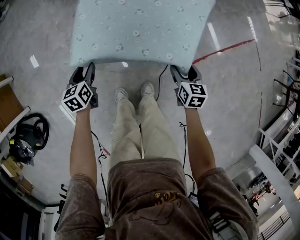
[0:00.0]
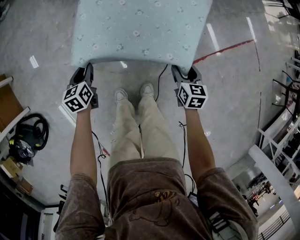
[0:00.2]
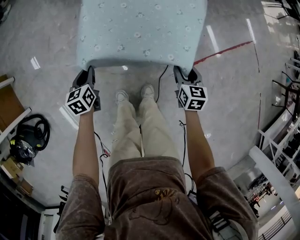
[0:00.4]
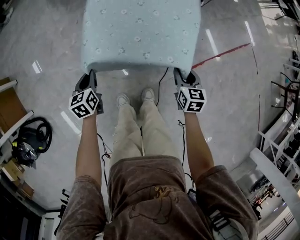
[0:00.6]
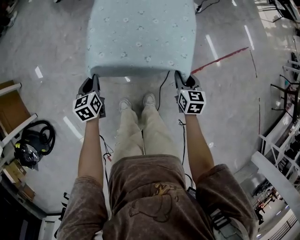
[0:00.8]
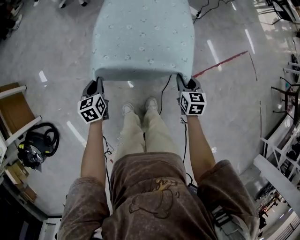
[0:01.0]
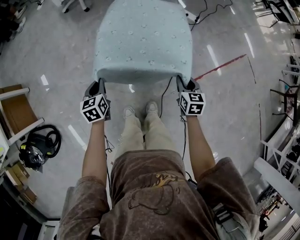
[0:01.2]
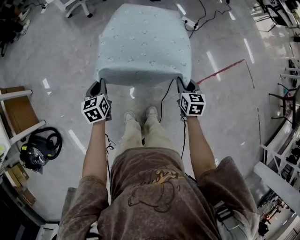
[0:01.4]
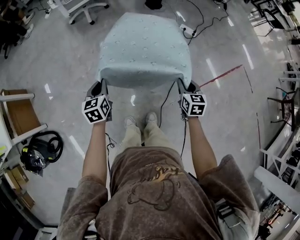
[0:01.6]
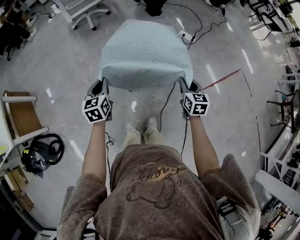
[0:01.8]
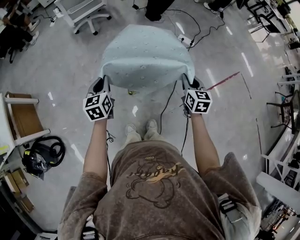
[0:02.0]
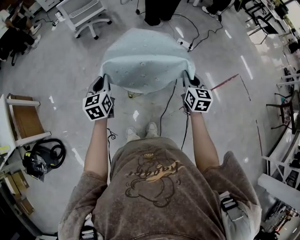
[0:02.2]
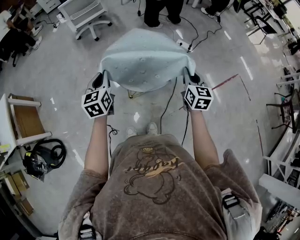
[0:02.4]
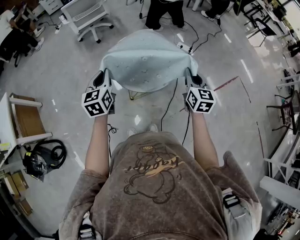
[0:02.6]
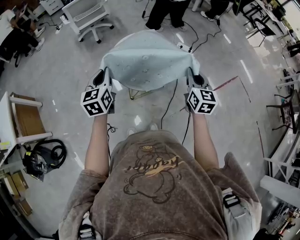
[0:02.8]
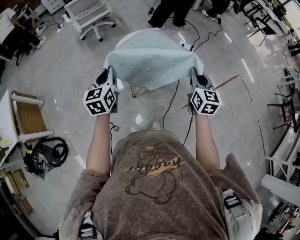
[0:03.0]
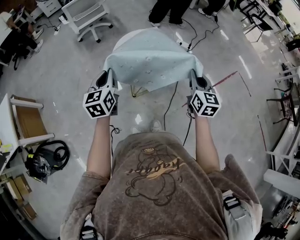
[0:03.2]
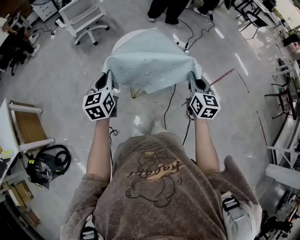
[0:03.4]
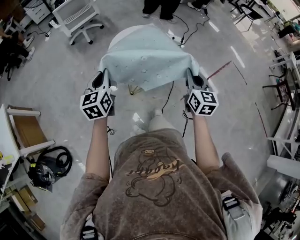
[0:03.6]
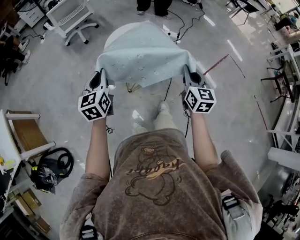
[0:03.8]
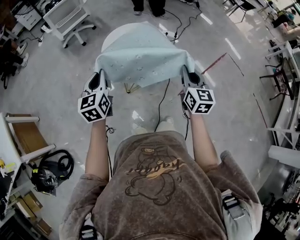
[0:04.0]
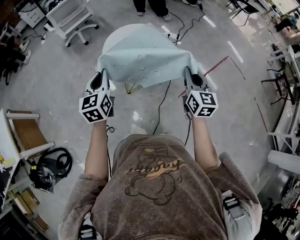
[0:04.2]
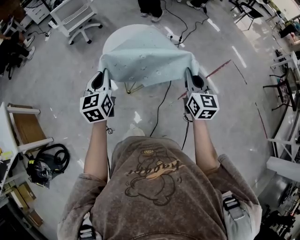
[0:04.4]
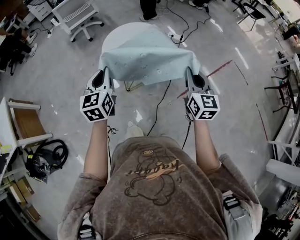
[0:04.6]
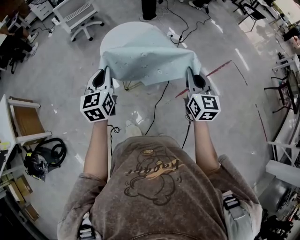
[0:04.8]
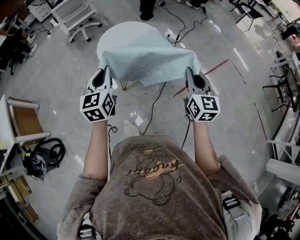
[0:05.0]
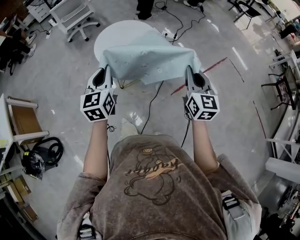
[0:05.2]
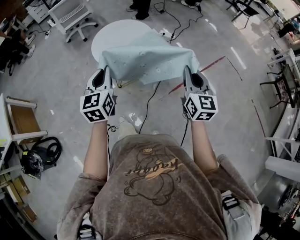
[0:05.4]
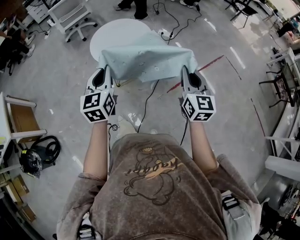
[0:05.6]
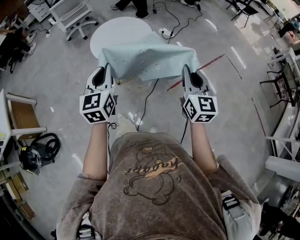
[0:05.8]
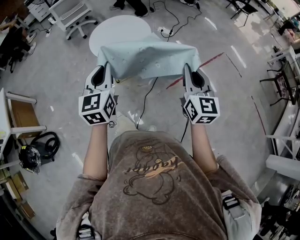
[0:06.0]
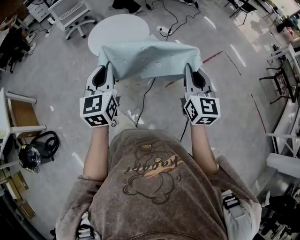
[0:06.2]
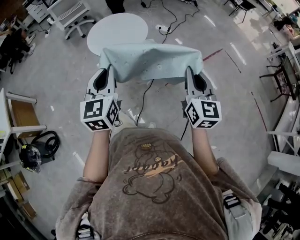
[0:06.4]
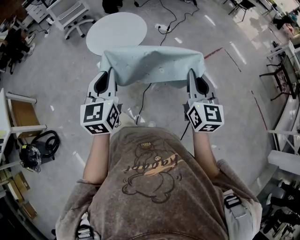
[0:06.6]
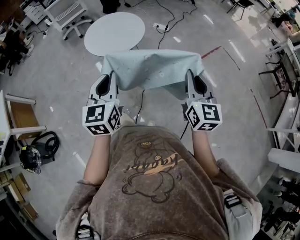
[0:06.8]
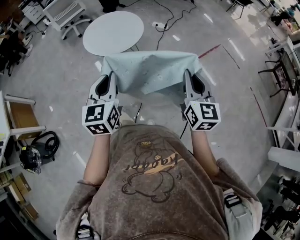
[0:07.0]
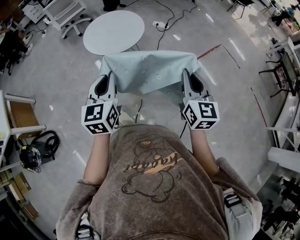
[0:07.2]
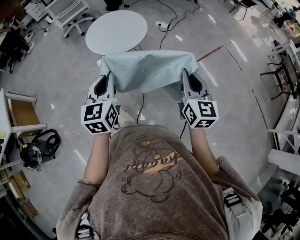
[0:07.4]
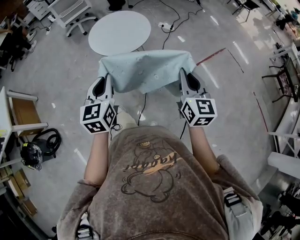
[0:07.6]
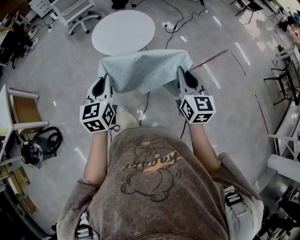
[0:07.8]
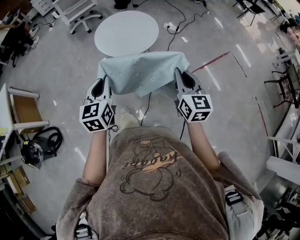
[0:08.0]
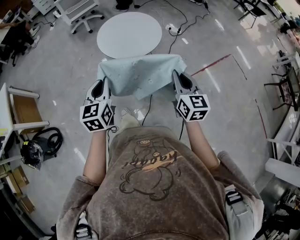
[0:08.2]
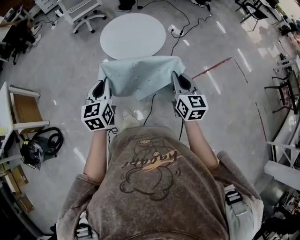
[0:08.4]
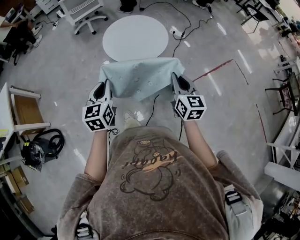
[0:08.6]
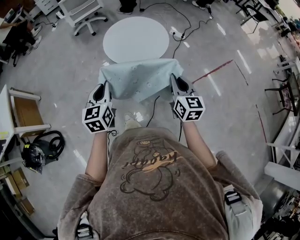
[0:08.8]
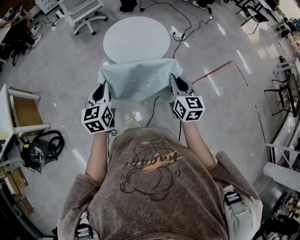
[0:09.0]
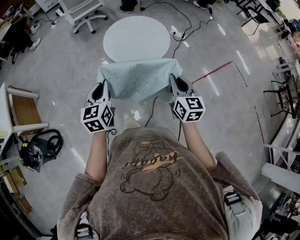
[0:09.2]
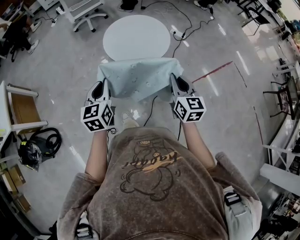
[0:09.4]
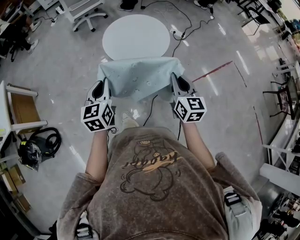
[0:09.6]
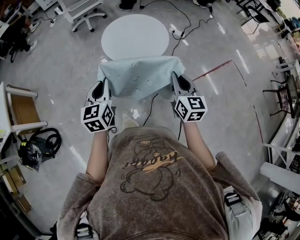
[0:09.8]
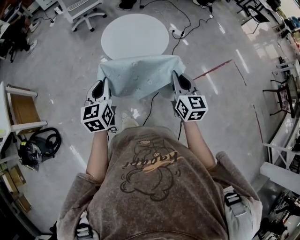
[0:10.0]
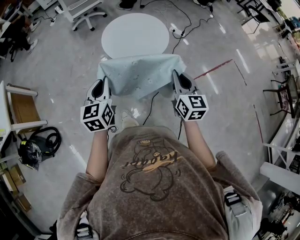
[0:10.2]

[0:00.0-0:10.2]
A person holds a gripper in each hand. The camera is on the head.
0.0 to 1.4 s: The two grippers go some 15 cm upward. The left gripper closes up; the right gripper closes.
1.4 to 3.0 s: The two grippers go about 25 cm upward. The right gripper swivels about 30 degrees; the left gripper swivels approximately 20 degrees.
3.0 to 4.4 s: The right gripper is displaced backward by about 10 cm, while the left gripper travels backward by roughly 5 cm.
4.4 to 5.8 s: The left gripper heads to the right and backward, covering roughly 20 cm. The right gripper is displaced backward and to the right by some 20 cm.
5.8 to 7.2 s: The right gripper heads backward, covering roughly 10 cm, while the left gripper goes approximately 10 cm backward and to the right.
7.2 to 8.8 s: The right gripper moves forward, to the left and downward, approximately 25 cm. The left gripper moves to the left and forward, roughly 20 cm.
8.8 to 10.2 s: The grippers make only small movements.

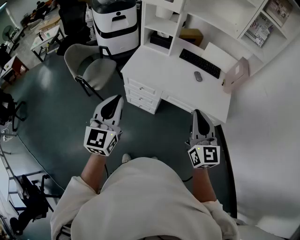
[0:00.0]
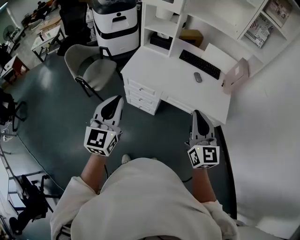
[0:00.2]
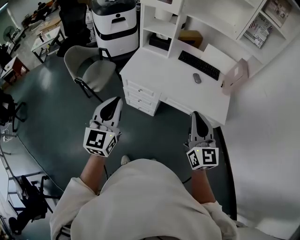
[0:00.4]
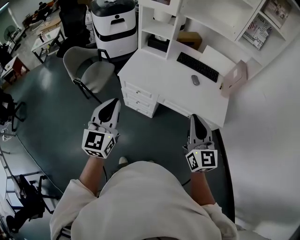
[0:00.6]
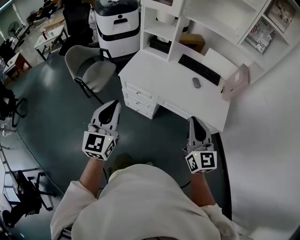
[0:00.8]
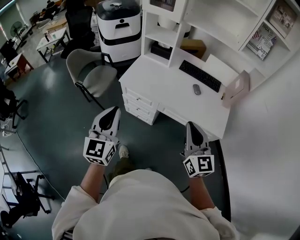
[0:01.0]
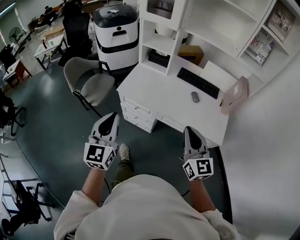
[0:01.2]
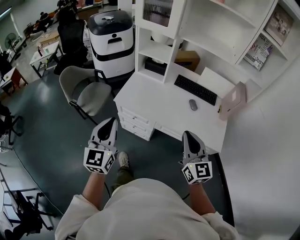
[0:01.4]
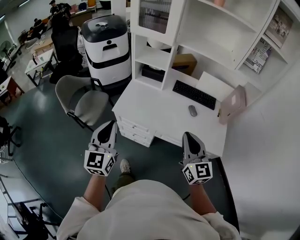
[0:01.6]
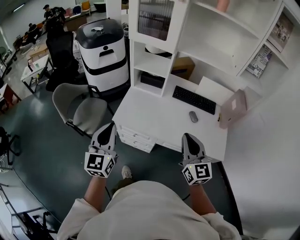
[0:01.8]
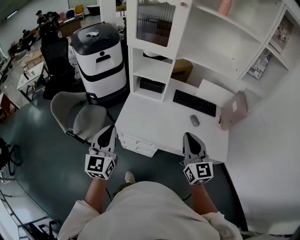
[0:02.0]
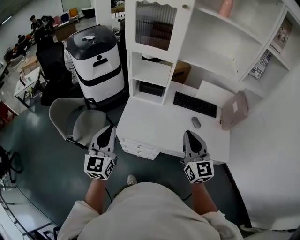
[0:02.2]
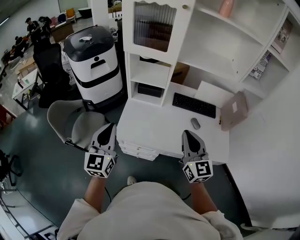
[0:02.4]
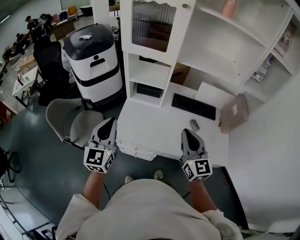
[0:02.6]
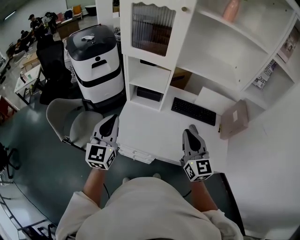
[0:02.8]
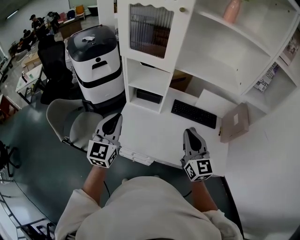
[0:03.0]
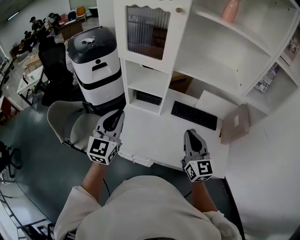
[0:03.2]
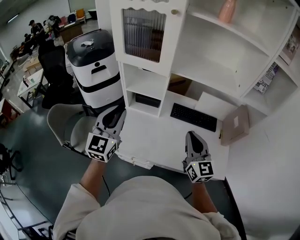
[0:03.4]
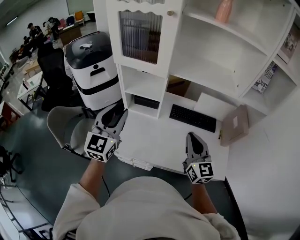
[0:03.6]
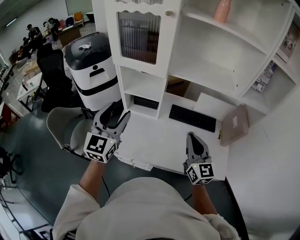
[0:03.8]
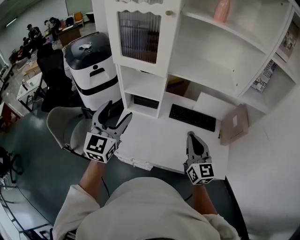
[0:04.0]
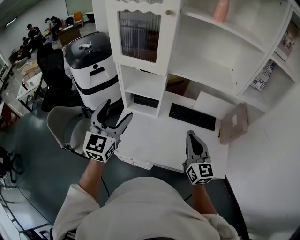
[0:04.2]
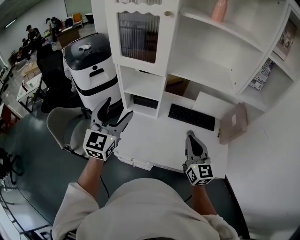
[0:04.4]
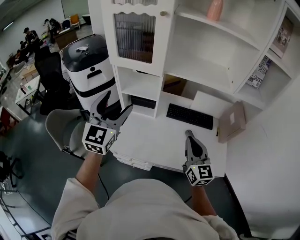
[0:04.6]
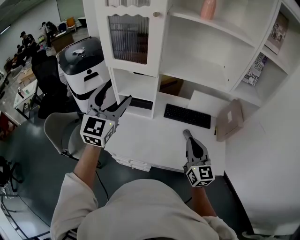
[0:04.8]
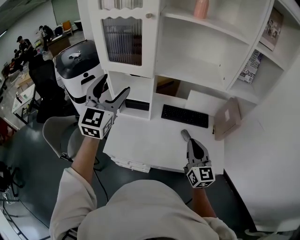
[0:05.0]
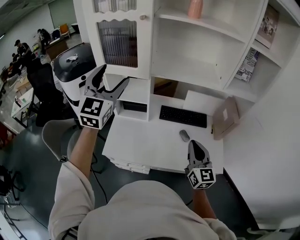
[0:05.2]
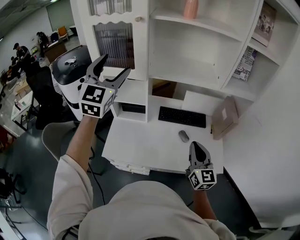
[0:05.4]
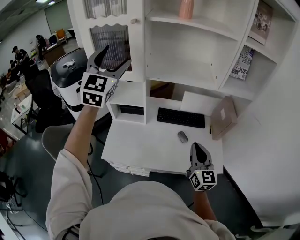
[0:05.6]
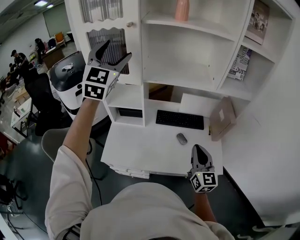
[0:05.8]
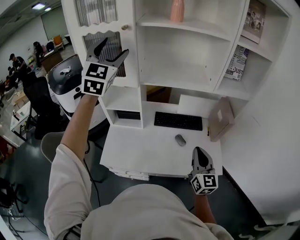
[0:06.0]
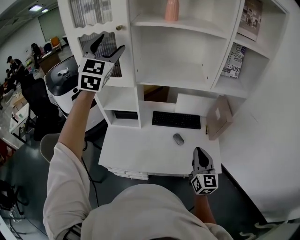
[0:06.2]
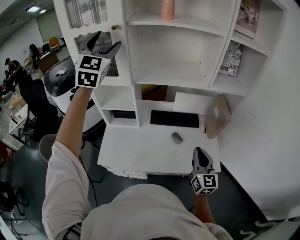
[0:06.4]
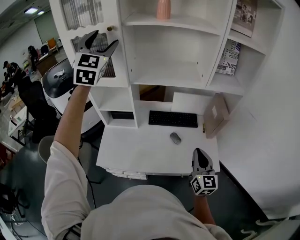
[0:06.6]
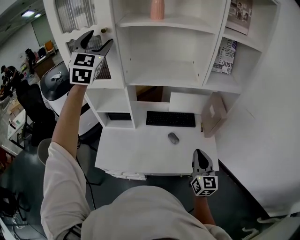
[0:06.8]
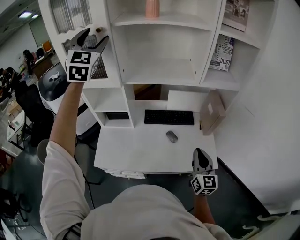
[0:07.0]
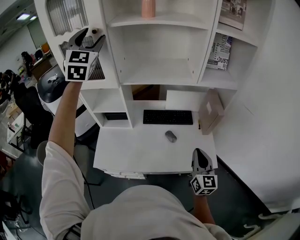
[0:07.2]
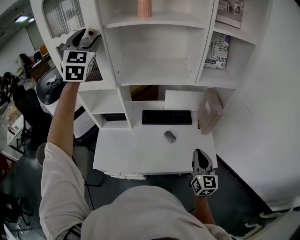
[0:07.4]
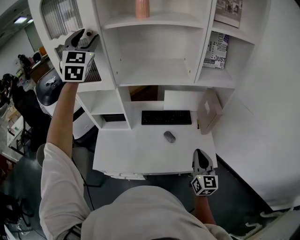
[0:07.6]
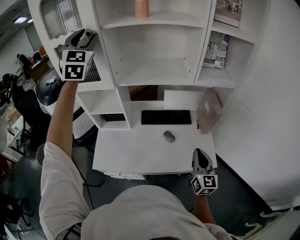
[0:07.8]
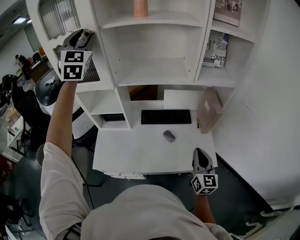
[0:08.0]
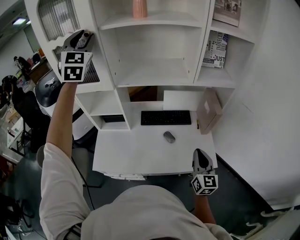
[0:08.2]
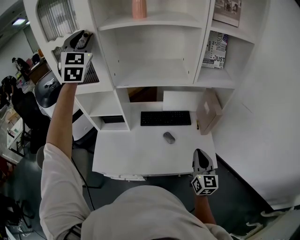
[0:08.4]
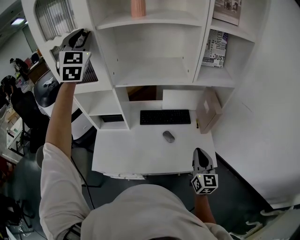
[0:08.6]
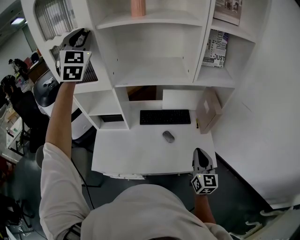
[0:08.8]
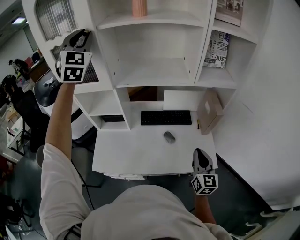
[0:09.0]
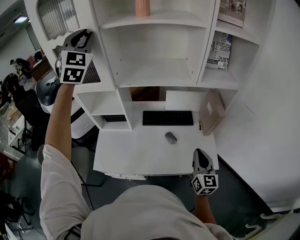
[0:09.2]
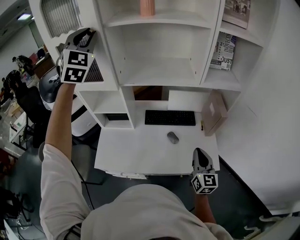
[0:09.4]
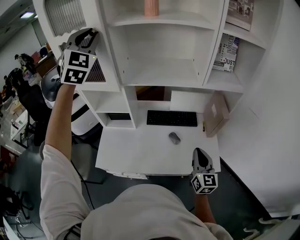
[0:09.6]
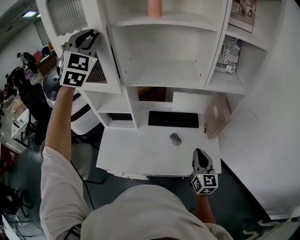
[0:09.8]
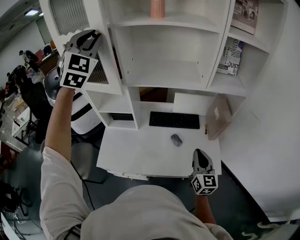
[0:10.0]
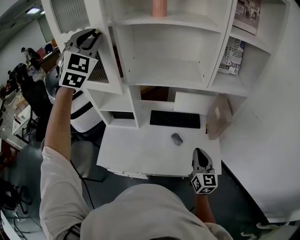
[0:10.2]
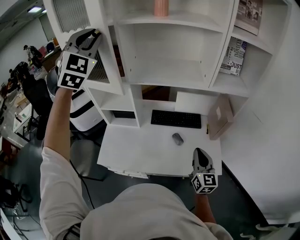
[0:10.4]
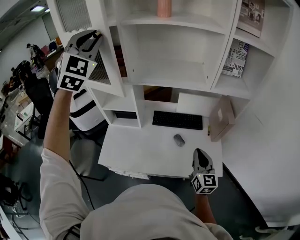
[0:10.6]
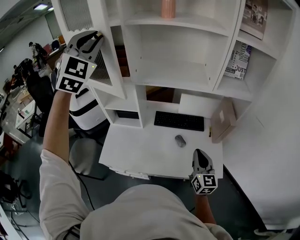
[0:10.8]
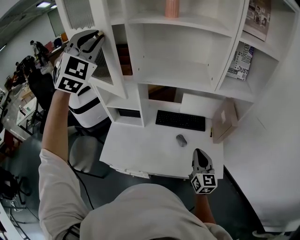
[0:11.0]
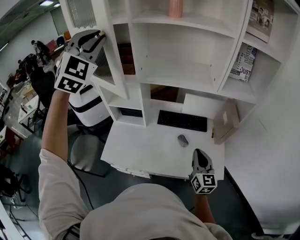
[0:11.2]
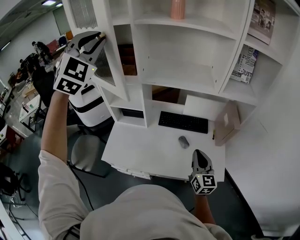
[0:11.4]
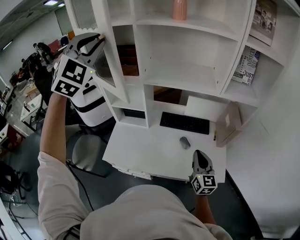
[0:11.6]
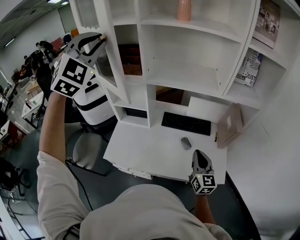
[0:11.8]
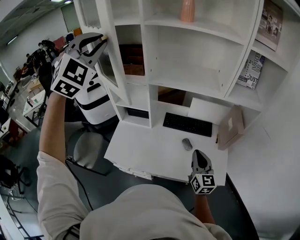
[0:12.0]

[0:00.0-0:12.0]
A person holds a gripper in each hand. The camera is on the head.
0.0 to 1.6 s: Both grippers travel together forward, roughly 15 cm.
1.6 to 3.0 s: The two grippers go some 25 cm forward.
3.0 to 4.4 s: The right gripper shifts by approximately 5 cm. Meanwhile the left gripper goes some 5 cm upward, and opens its fingers.
4.4 to 6.0 s: The left gripper moves upward, forward and to the right, some 30 cm, and swivels some 20 degrees; the right gripper heads to the right, covering approximately 15 cm.
6.0 to 7.6 s: The right gripper is displaced to the right by approximately 10 cm; the left gripper goes approximately 5 cm forward.
7.6 to 9.0 s: The left gripper closes.
9.0 to 10.4 s: The left gripper is displaced backward by roughly 5 cm.
10.4 to 12.0 s: The left gripper heads backward, covering roughly 5 cm. The right gripper moves approximately 5 cm.

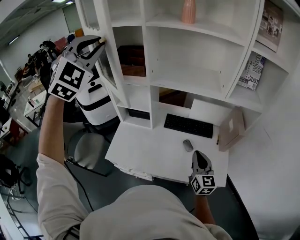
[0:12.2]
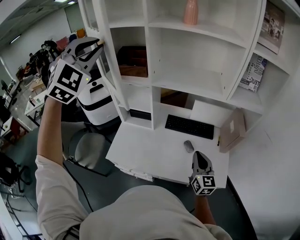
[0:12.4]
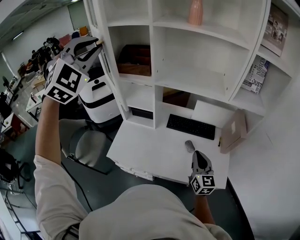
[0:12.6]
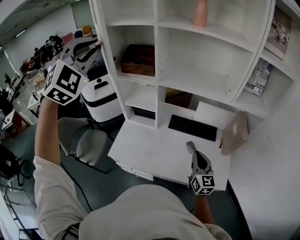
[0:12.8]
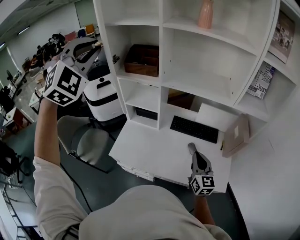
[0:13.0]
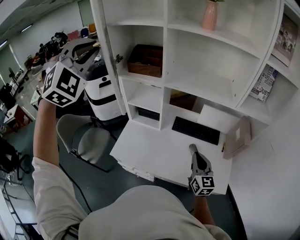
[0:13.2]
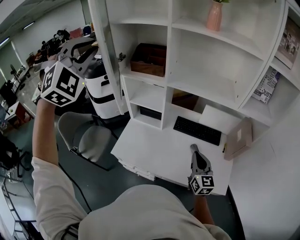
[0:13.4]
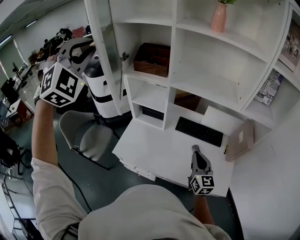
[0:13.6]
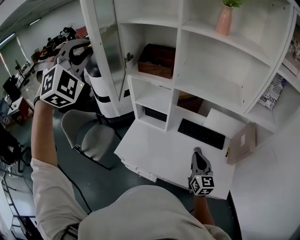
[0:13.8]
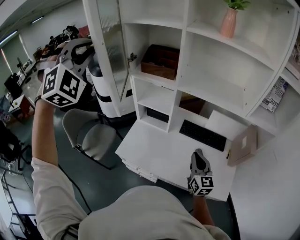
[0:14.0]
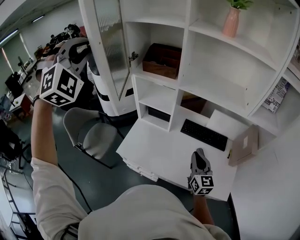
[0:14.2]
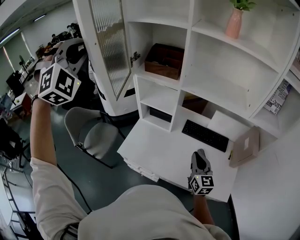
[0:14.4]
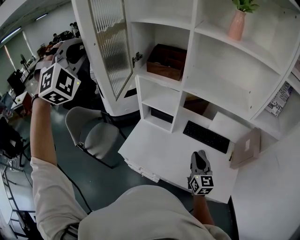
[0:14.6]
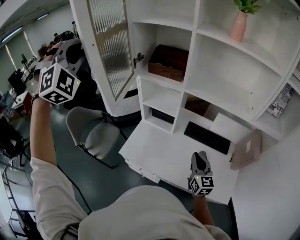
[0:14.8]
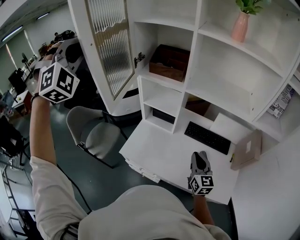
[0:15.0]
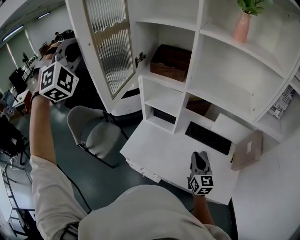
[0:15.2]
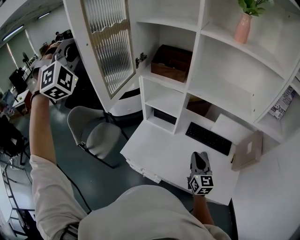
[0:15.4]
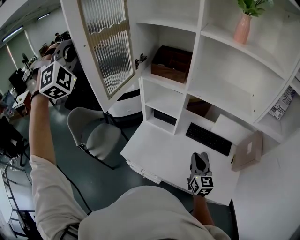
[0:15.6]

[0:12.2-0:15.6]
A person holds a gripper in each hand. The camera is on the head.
12.2 to 13.8 s: The left gripper travels to the left by about 15 cm, and turns by roughly 20 degrees; the right gripper shifts some 5 cm to the left.
13.8 to 15.6 s: The right gripper shifts by approximately 5 cm. The left gripper travels to the left by roughly 10 cm.
